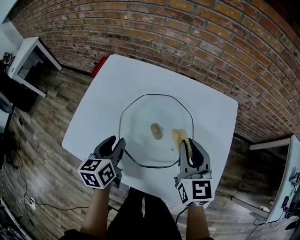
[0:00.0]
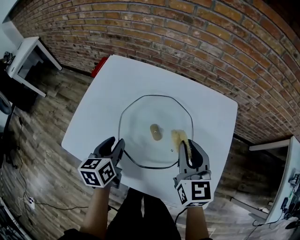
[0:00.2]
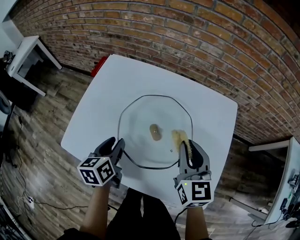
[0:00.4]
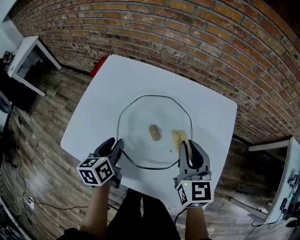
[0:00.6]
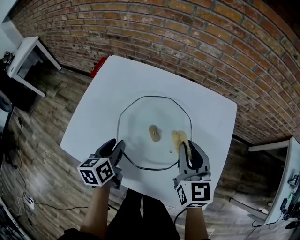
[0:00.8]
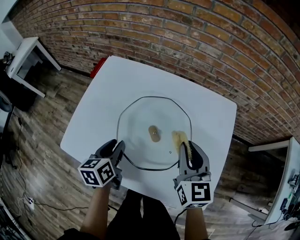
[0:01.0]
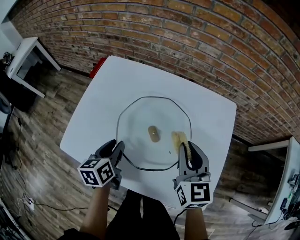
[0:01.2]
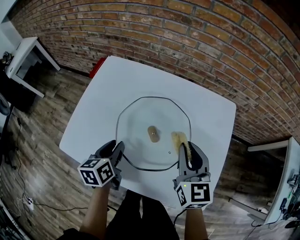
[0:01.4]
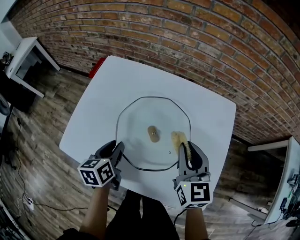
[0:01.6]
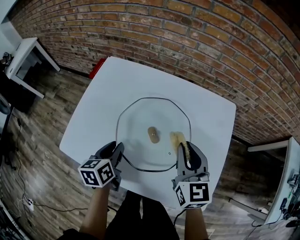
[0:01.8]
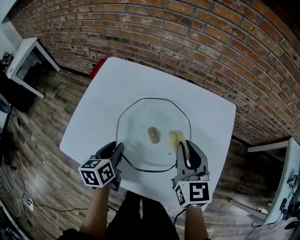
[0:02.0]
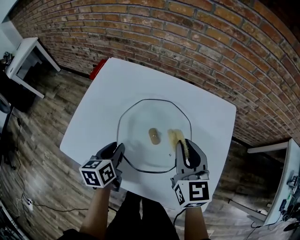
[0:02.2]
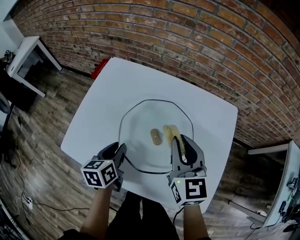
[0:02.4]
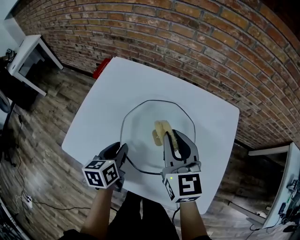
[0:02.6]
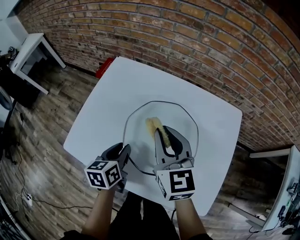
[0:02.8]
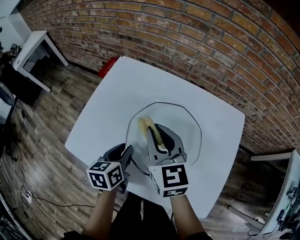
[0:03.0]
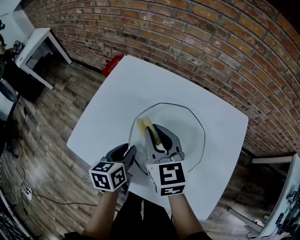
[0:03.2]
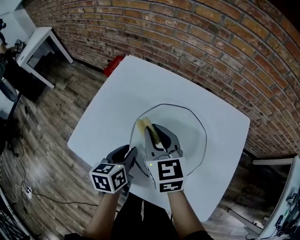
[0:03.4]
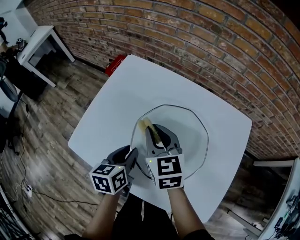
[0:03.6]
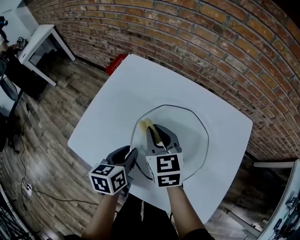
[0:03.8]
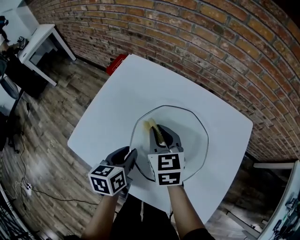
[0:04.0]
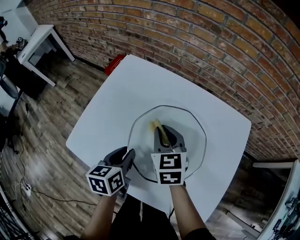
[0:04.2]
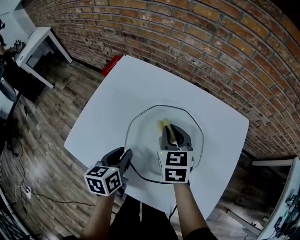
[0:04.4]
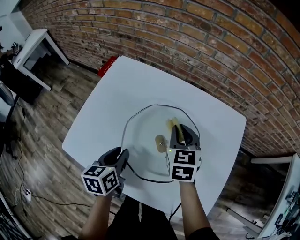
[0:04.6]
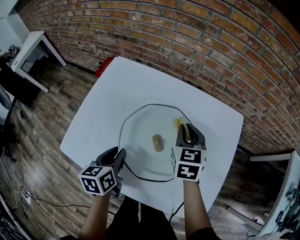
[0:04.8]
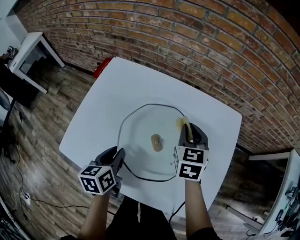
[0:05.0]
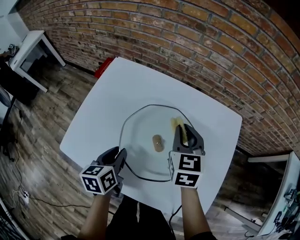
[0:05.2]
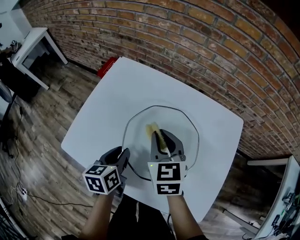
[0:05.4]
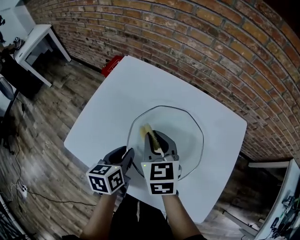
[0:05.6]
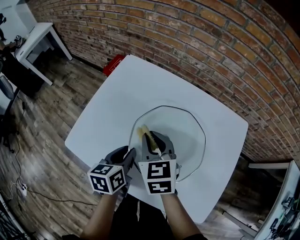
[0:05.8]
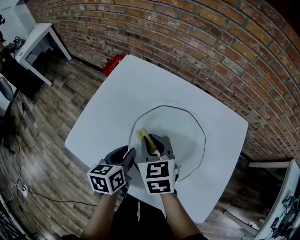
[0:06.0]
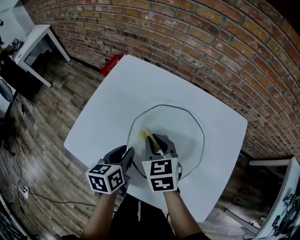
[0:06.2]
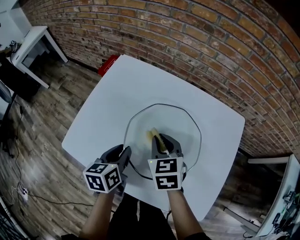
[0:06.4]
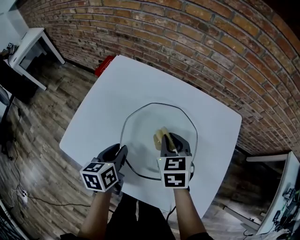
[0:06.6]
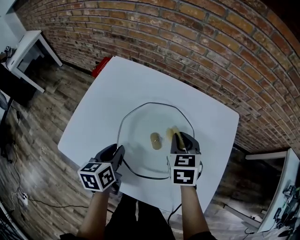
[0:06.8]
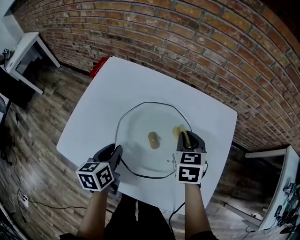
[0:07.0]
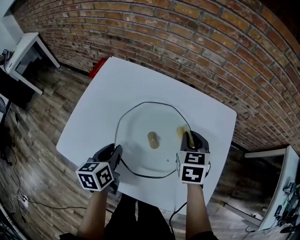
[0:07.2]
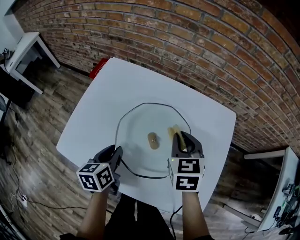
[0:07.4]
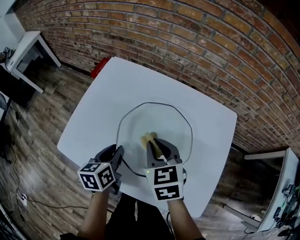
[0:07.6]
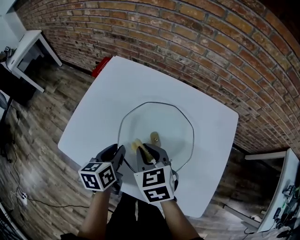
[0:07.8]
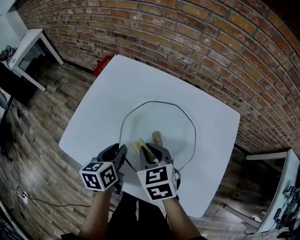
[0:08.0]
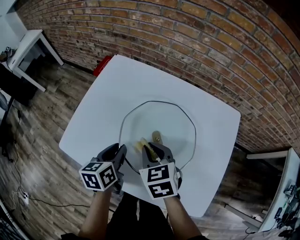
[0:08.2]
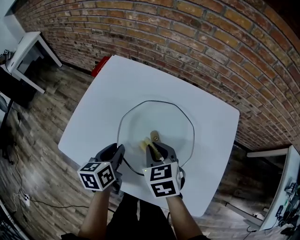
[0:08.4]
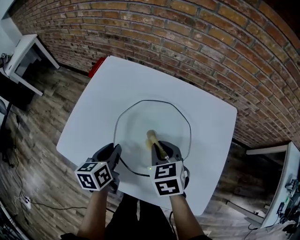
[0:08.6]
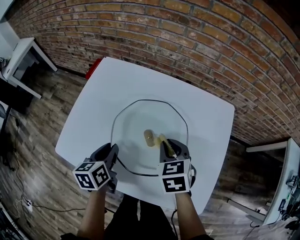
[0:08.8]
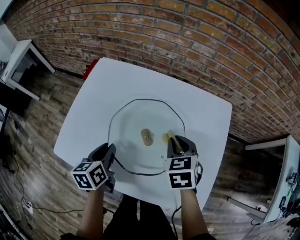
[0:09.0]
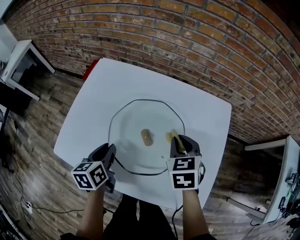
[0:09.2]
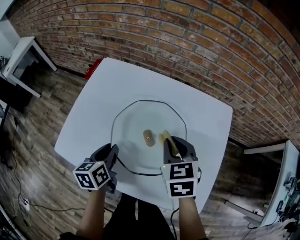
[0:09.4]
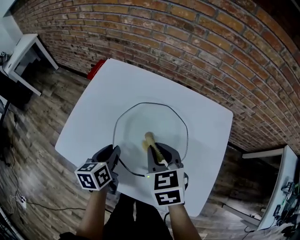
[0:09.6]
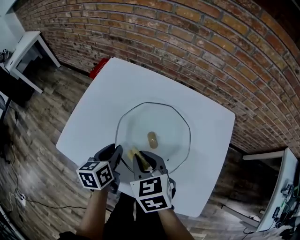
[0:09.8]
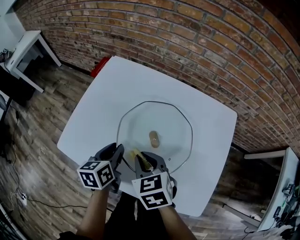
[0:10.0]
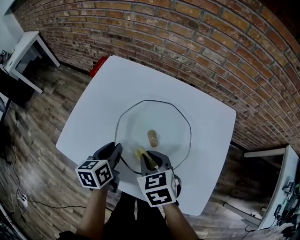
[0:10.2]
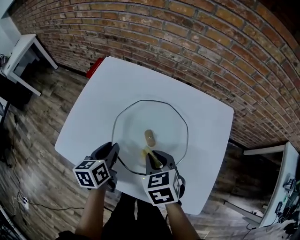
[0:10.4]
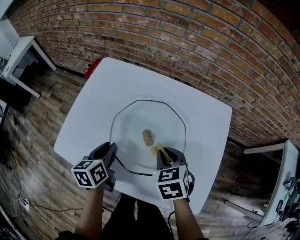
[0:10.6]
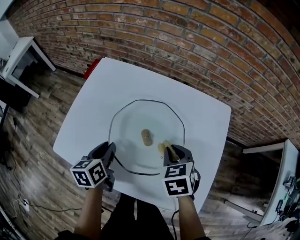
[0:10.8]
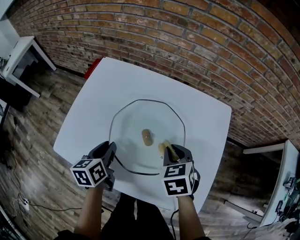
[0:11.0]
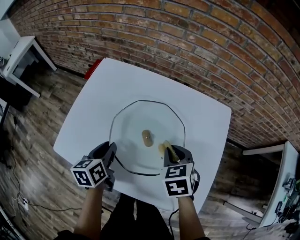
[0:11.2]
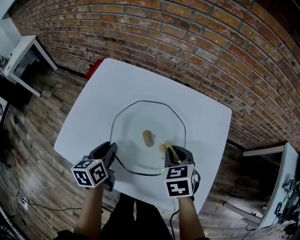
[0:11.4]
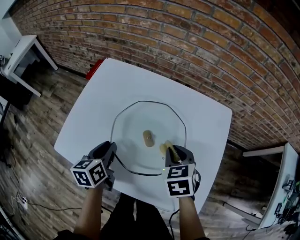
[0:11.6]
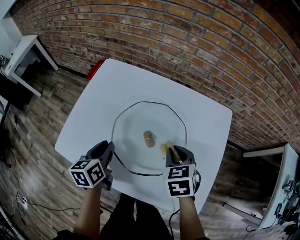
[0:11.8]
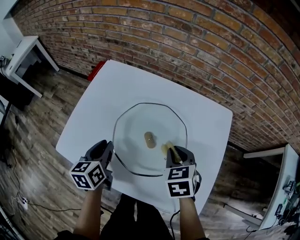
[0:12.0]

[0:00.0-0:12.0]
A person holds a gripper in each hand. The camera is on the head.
0.0 to 1.6 s: The grippers make only small movements.
1.6 to 3.0 s: The right gripper heads to the left, covering roughly 15 cm.
3.0 to 4.4 s: The right gripper moves downward and to the right, about 10 cm.
4.4 to 6.0 s: The right gripper is displaced to the left and backward by roughly 10 cm.
6.0 to 7.6 s: The right gripper reaches approximately 20 cm to the right, then returns.
7.6 to 9.0 s: The right gripper shifts about 10 cm to the right.
9.0 to 10.4 s: The right gripper heads to the left and backward, covering about 10 cm.
10.4 to 12.0 s: The right gripper heads to the right, covering roughly 10 cm.

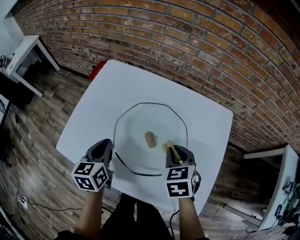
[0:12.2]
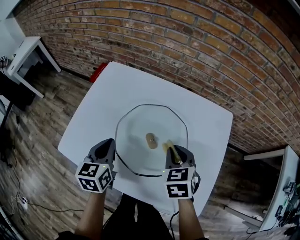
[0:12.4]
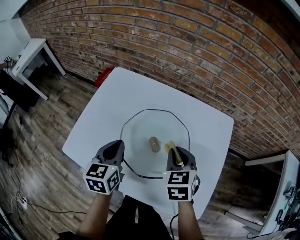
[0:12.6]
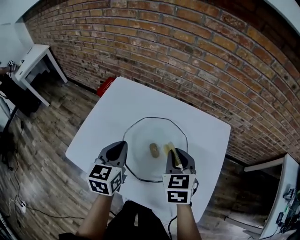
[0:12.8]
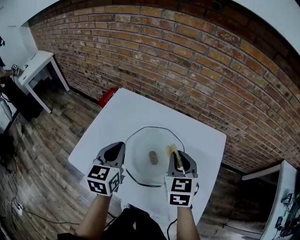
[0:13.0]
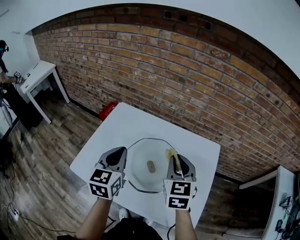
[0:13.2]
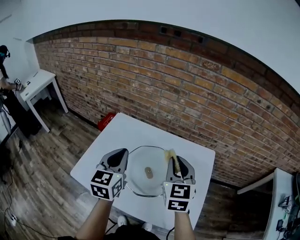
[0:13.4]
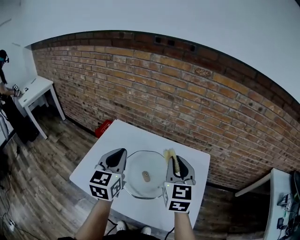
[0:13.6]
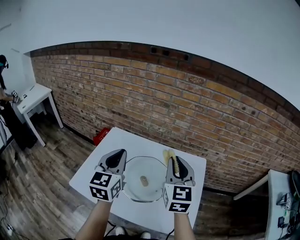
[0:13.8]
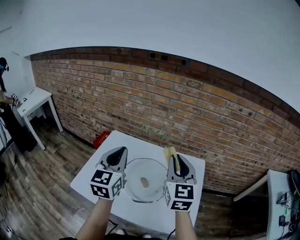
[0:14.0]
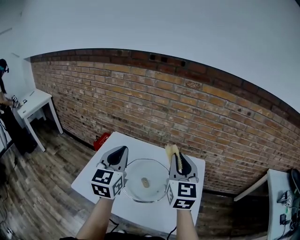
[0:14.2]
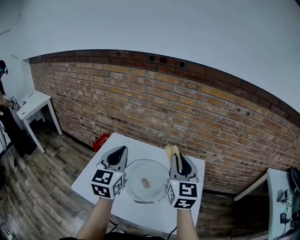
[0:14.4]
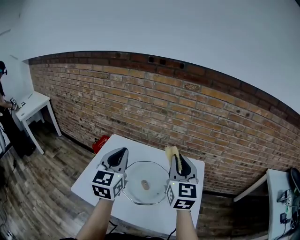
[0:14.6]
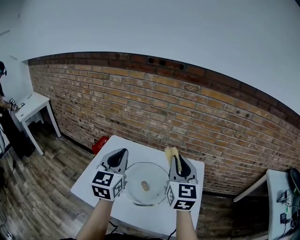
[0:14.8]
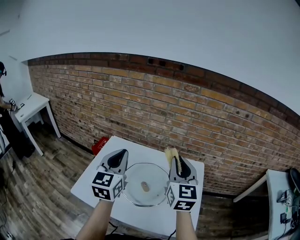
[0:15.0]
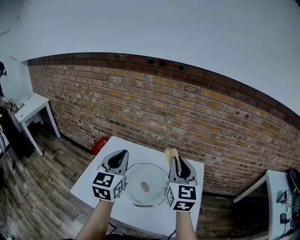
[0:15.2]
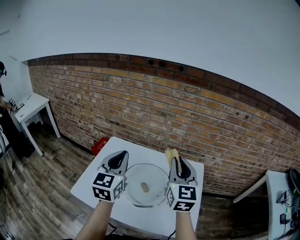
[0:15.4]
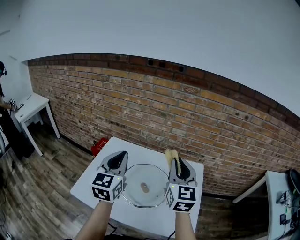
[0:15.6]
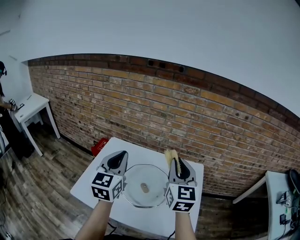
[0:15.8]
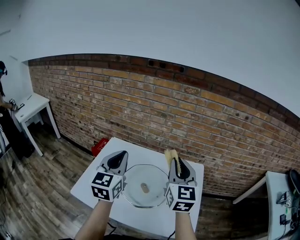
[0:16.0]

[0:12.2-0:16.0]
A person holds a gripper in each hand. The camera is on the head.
12.2 to 13.4 s: Both grippers travel together upward, about 20 cm. The left gripper changes its angle by some 20 degrees, while the right gripper tilts its fingers about 30 degrees upward.
13.4 to 14.8 s: Both grippers travel together upward, some 10 cm.
14.8 to 16.0 s: Both grippers stay about where they are.

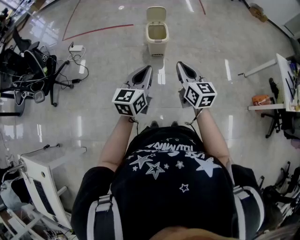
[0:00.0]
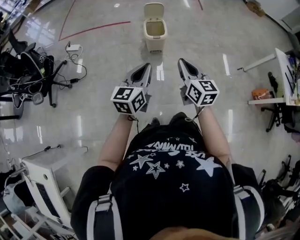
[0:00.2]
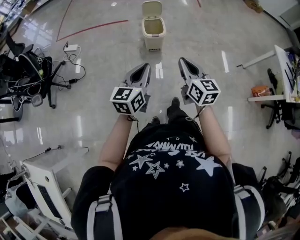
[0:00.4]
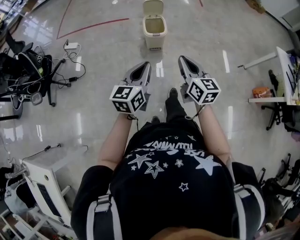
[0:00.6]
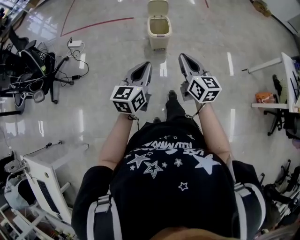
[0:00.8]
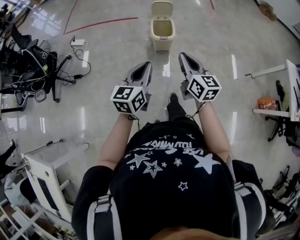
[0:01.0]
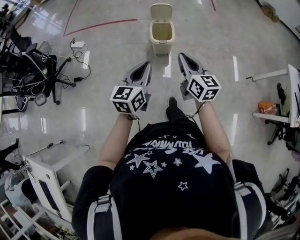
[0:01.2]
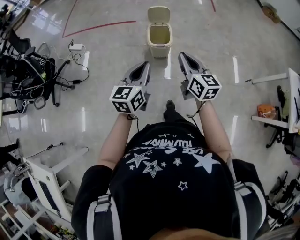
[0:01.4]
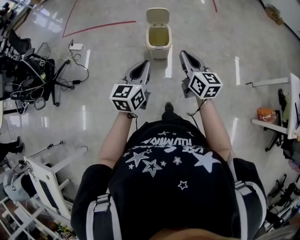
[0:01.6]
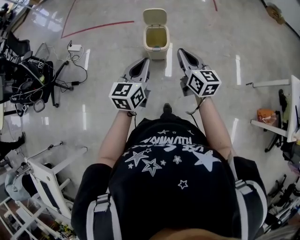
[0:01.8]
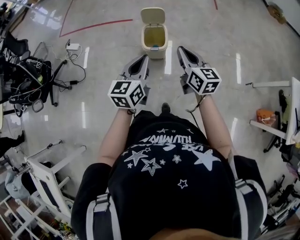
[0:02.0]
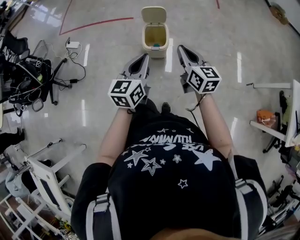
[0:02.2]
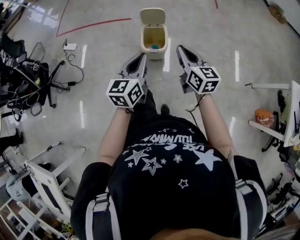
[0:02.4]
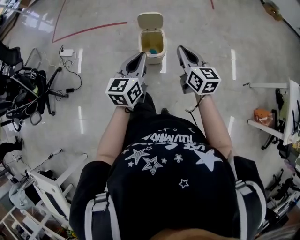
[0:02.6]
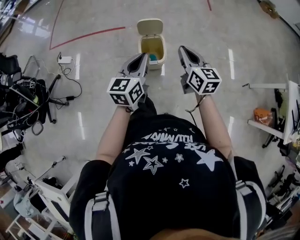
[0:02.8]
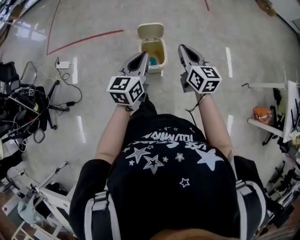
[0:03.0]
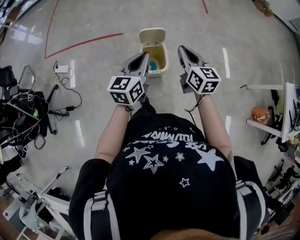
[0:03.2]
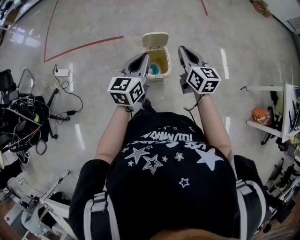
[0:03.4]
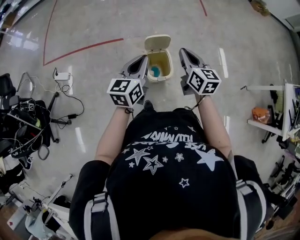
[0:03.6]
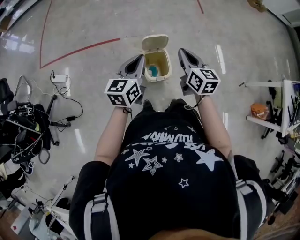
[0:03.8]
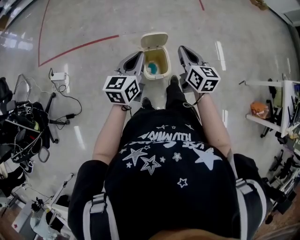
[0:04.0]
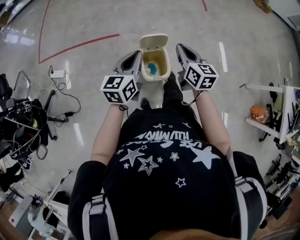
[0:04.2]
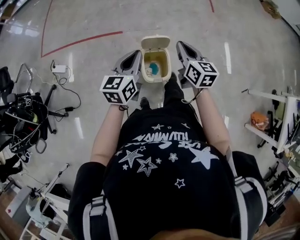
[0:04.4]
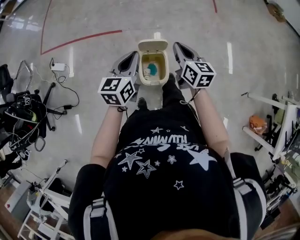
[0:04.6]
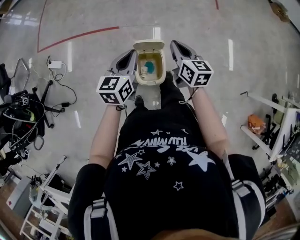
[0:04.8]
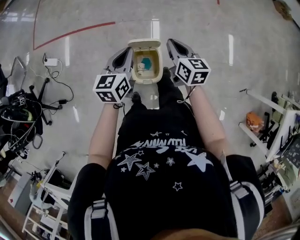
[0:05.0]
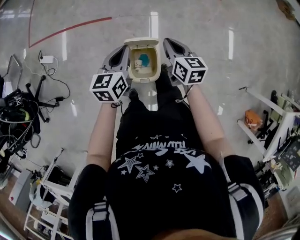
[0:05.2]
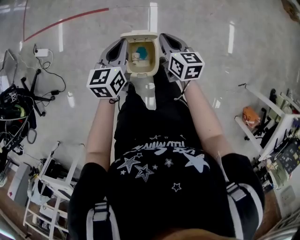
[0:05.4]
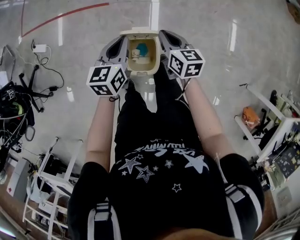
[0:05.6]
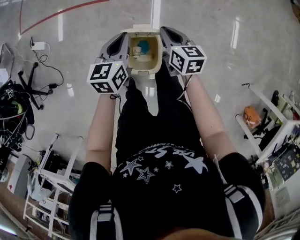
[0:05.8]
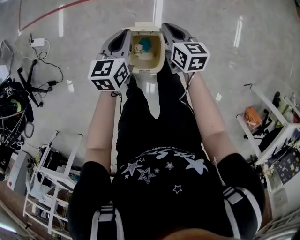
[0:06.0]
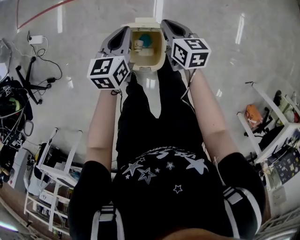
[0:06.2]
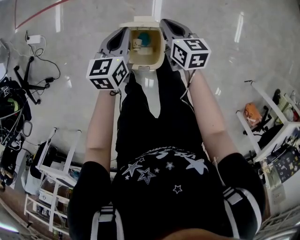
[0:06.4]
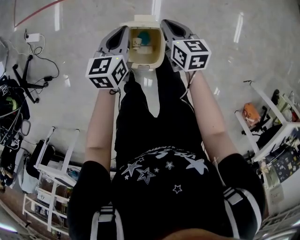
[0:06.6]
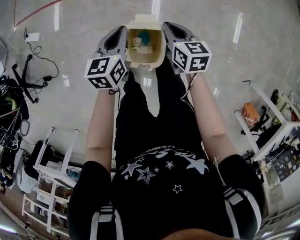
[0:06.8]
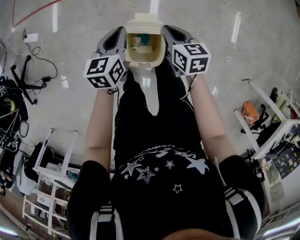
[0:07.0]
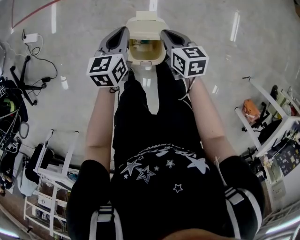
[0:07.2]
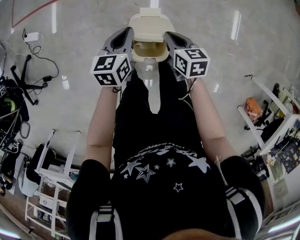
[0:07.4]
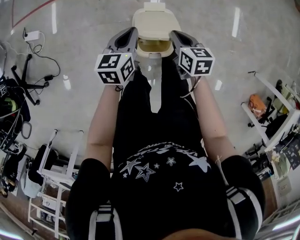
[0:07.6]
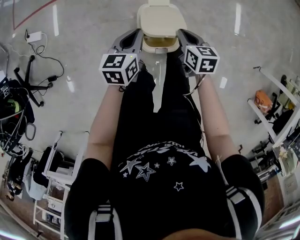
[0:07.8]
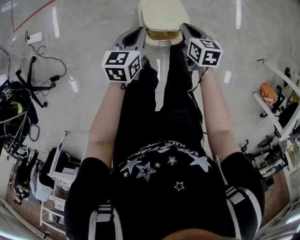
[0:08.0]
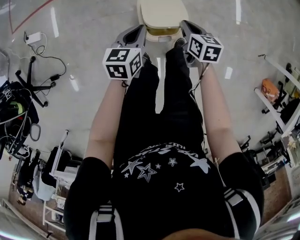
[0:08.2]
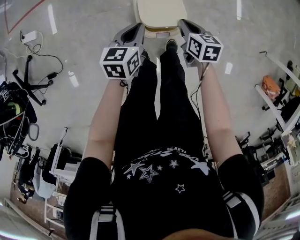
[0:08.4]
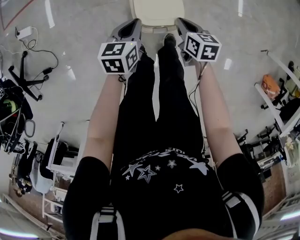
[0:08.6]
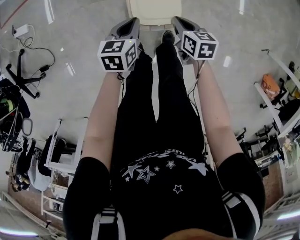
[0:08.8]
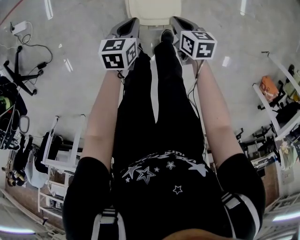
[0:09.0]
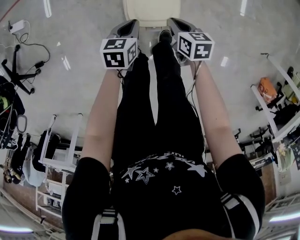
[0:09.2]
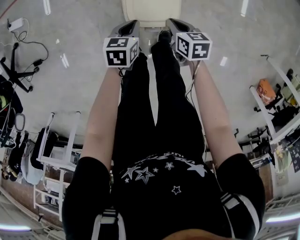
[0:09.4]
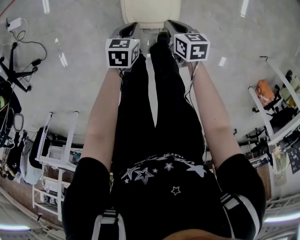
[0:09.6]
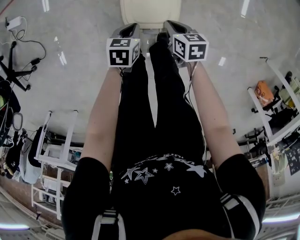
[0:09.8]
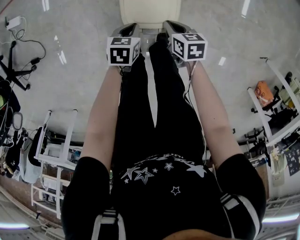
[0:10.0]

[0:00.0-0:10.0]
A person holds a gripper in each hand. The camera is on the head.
0.0 to 1.4 s: The grippers both shift forward by about 20 cm.
1.4 to 2.8 s: The two grippers go some 25 cm forward.
2.8 to 4.2 s: The grippers both shift forward and to the left by approximately 20 cm.
4.2 to 5.8 s: The grippers both shift downward and forward by about 25 cm. The right gripper changes its angle by approximately 20 degrees. Meanwhile the left gripper turns by some 20 degrees.
5.8 to 7.2 s: The right gripper travels backward and downward by approximately 10 cm. The left gripper heads downward, covering roughly 5 cm.
7.2 to 8.6 s: The grippers both shift backward and downward by about 15 cm.
8.6 to 10.0 s: The right gripper heads downward, covering roughly 10 cm, while the left gripper goes some 15 cm downward, and swivels approximately 20 degrees.
